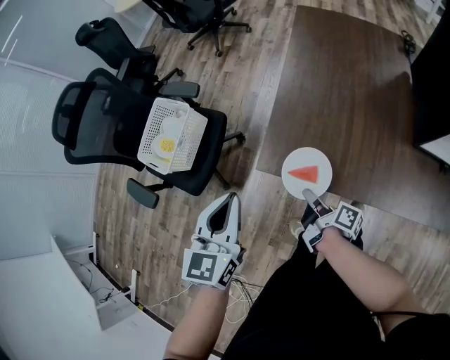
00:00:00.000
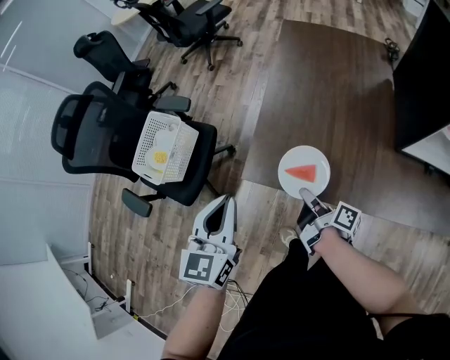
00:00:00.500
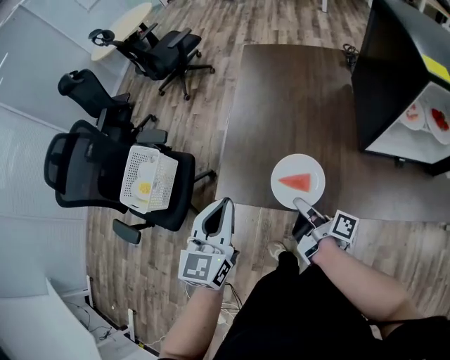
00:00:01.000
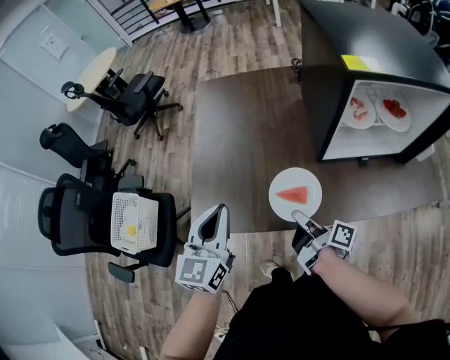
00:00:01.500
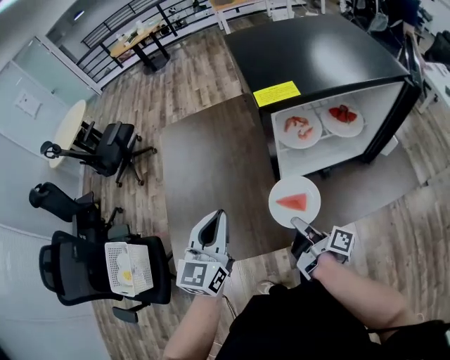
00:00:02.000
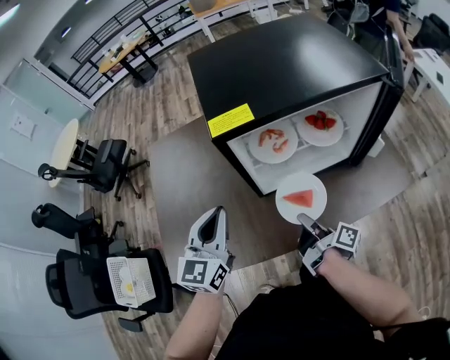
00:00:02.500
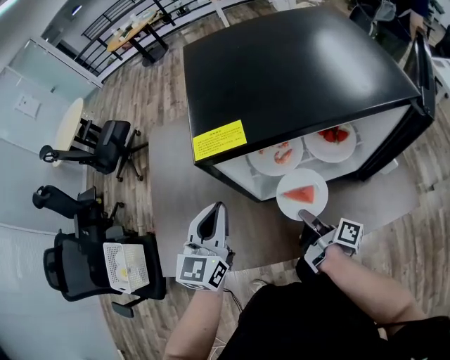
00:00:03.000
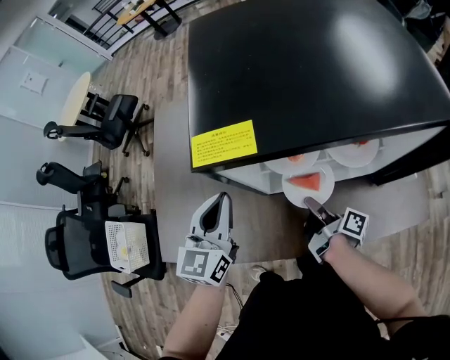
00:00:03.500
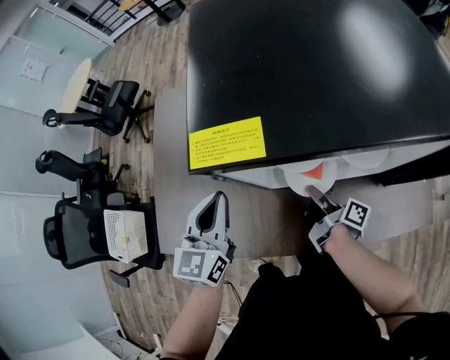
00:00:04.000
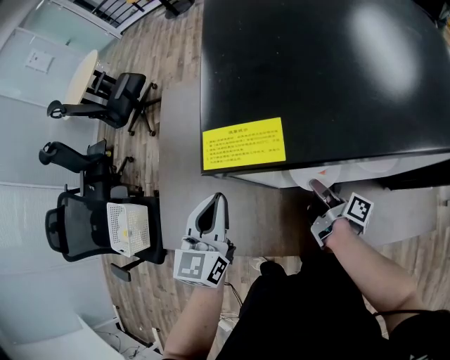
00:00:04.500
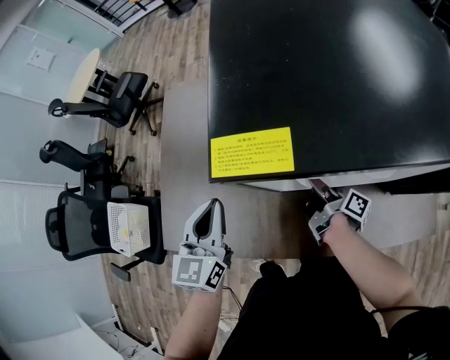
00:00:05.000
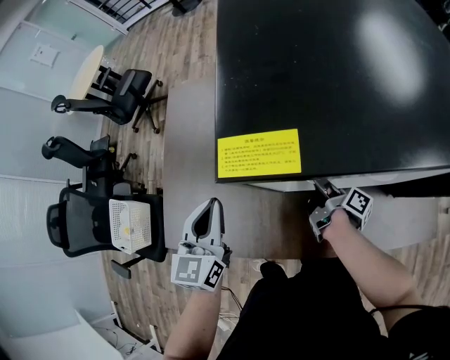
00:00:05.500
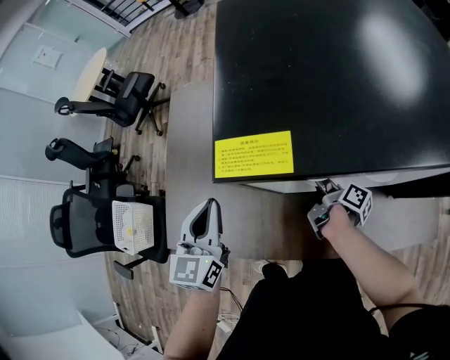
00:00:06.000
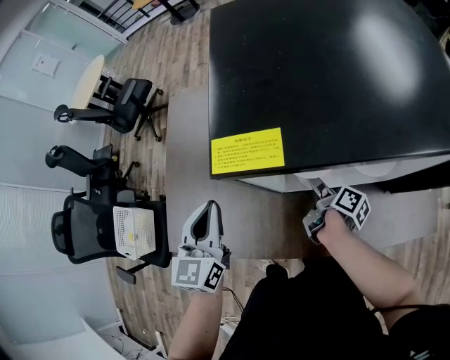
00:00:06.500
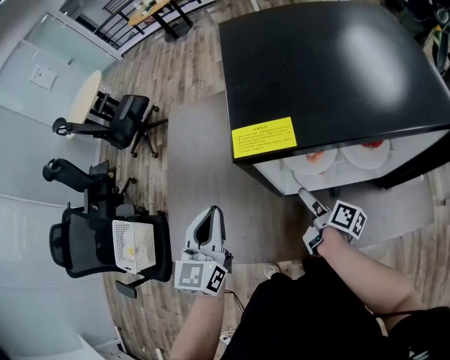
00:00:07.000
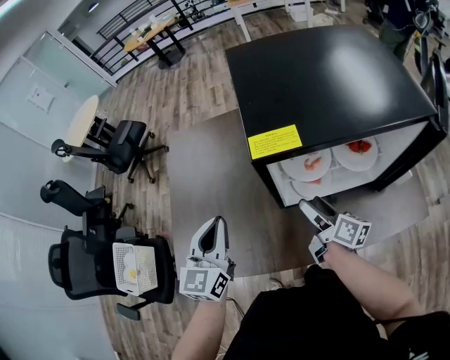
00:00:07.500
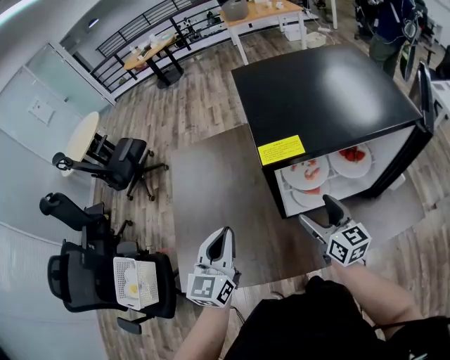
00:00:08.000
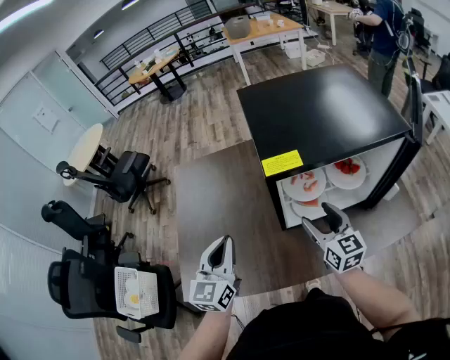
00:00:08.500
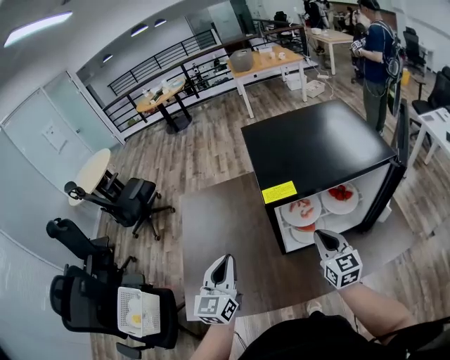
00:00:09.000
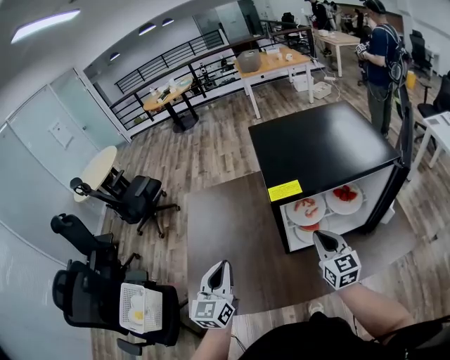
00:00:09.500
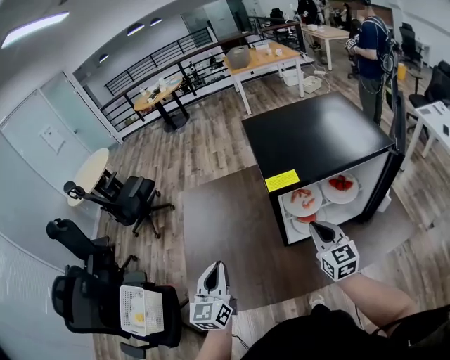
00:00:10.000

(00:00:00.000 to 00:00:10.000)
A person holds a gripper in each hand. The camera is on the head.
00:00:00.000 - 00:00:02.000: The left gripper ends up about 40 cm from where it was, and swivels approximately 30 degrees.
00:00:02.000 - 00:00:04.000: The left gripper ends up some 15 cm from where it was.
00:00:04.000 - 00:00:06.000: The left gripper moves about 5 cm.
00:00:06.000 - 00:00:08.000: The left gripper shifts by approximately 5 cm.
00:00:08.000 - 00:00:10.000: The left gripper ends up some 10 cm from where it was.

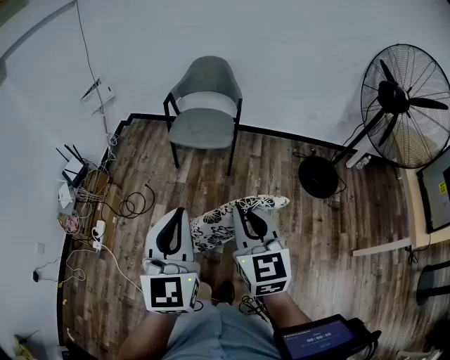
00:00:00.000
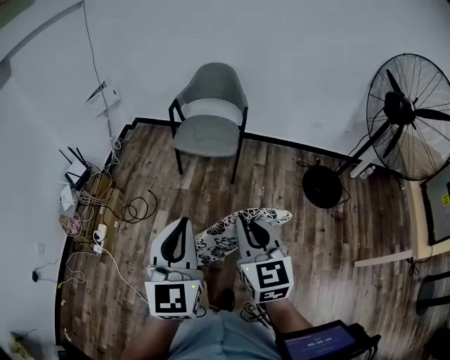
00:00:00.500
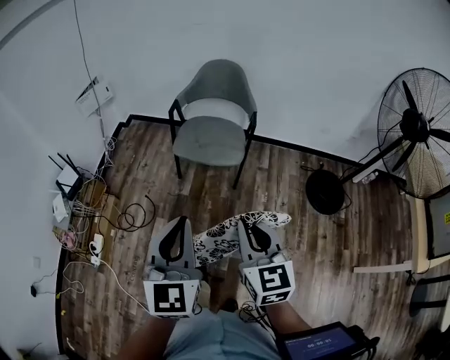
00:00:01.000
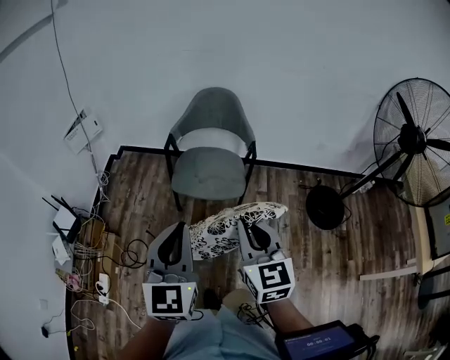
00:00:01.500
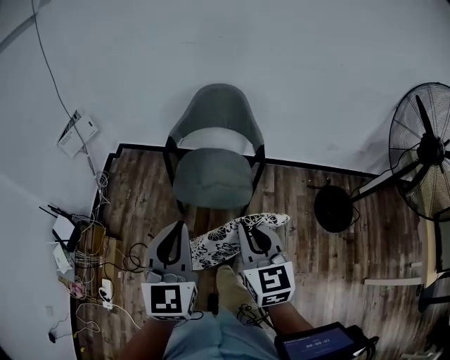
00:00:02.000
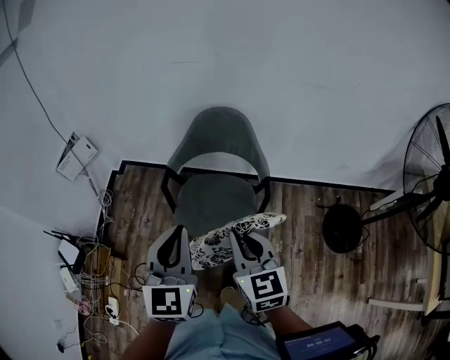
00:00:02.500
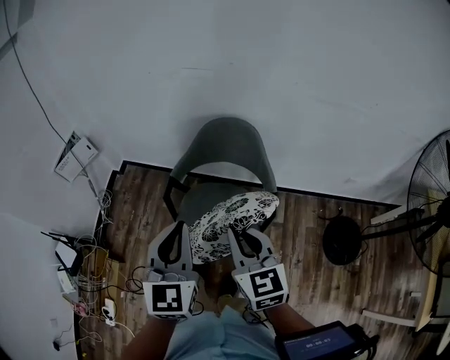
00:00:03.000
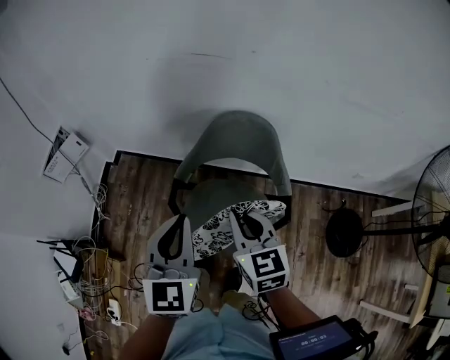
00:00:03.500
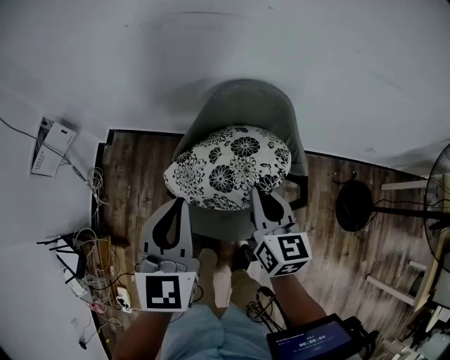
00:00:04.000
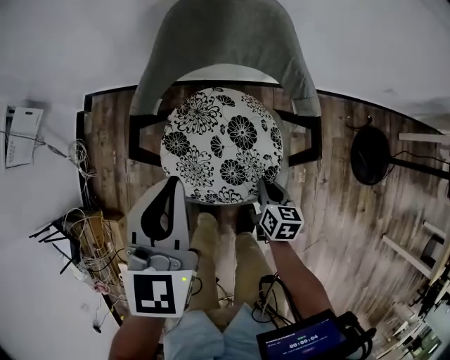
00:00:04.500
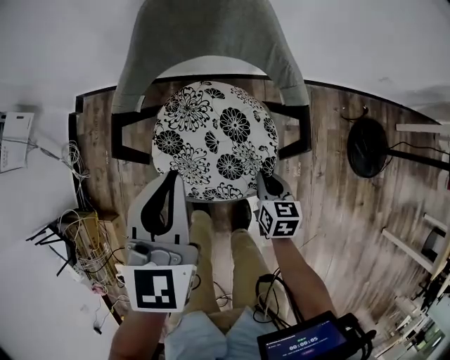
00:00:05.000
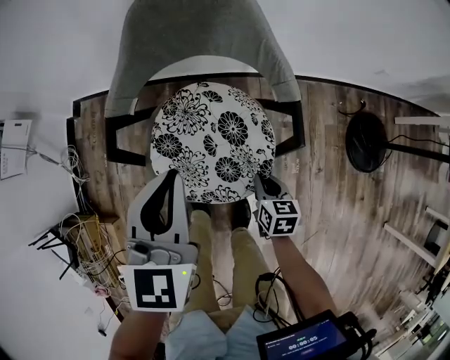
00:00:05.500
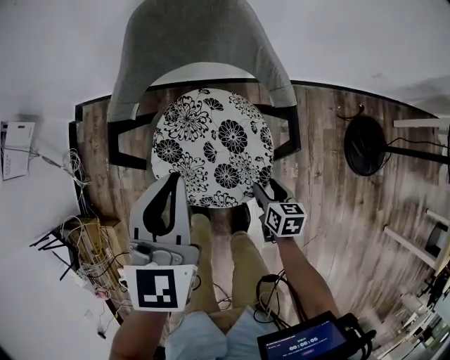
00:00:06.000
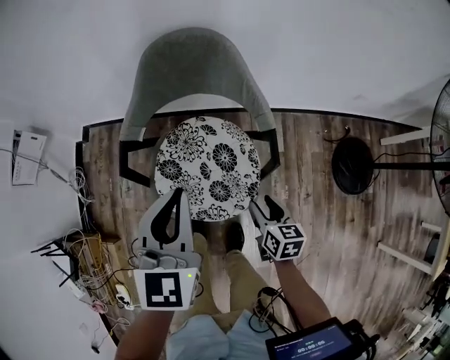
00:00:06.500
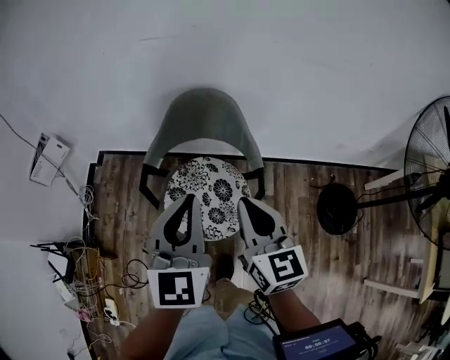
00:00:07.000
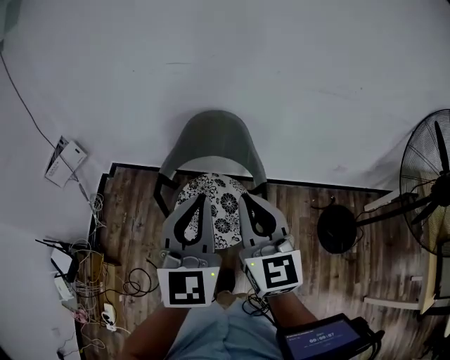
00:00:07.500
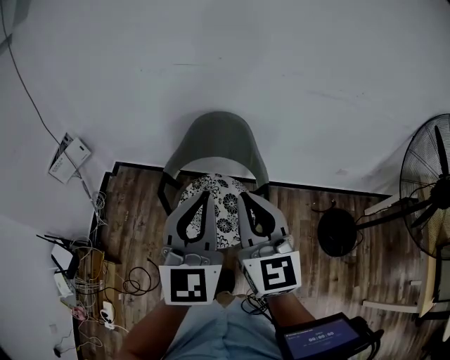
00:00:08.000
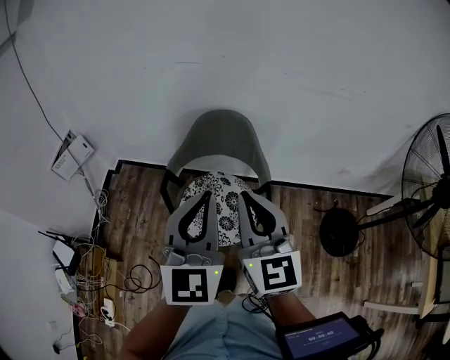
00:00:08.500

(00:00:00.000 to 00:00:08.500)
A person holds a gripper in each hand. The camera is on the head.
00:00:00.000 - 00:00:02.000: Both grippers travel together forward, approximately 40 cm.
00:00:02.000 - 00:00:04.000: Both grippers are carried forward, about 40 cm. The right gripper rotates roughly 20 degrees.
00:00:04.000 - 00:00:06.500: The left gripper heads to the right, downward and backward, covering roughly 15 cm, while the right gripper heads downward, backward and to the right, covering approximately 35 cm, turns by about 20 degrees, and opens up.
00:00:06.500 - 00:00:08.500: The right gripper is displaced upward by about 50 cm, tips its fingers upward by some 40 degrees, and closes up, while the left gripper travels upward and backward by some 25 cm, and changes its angle by roughly 20 degrees.

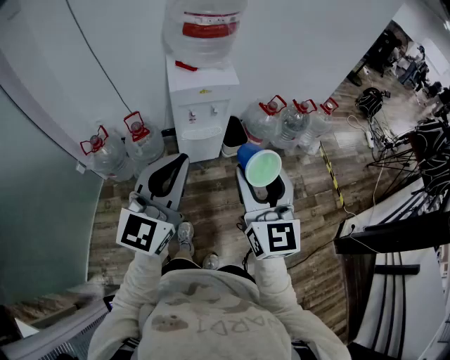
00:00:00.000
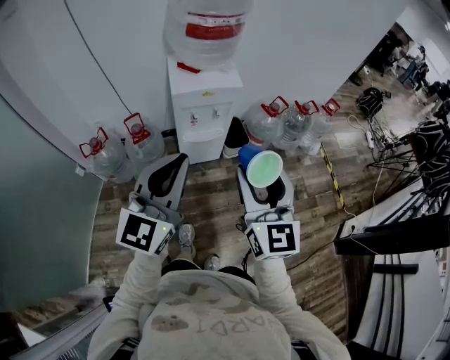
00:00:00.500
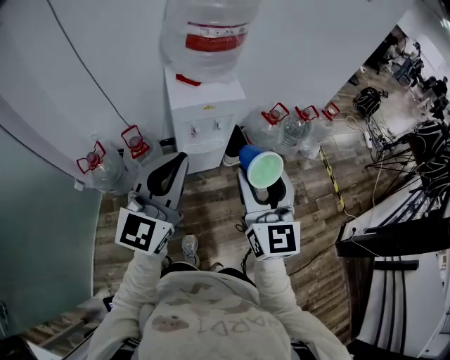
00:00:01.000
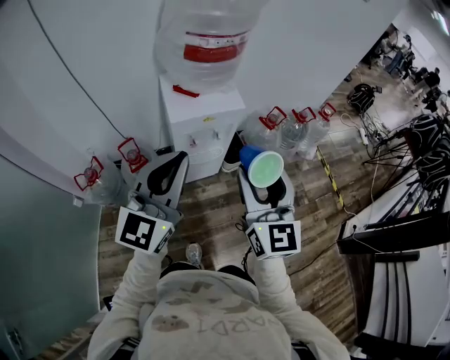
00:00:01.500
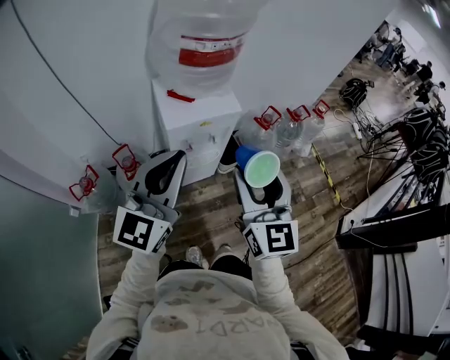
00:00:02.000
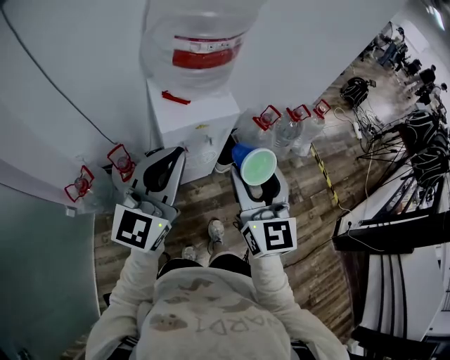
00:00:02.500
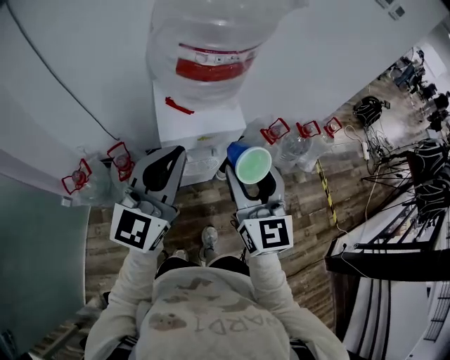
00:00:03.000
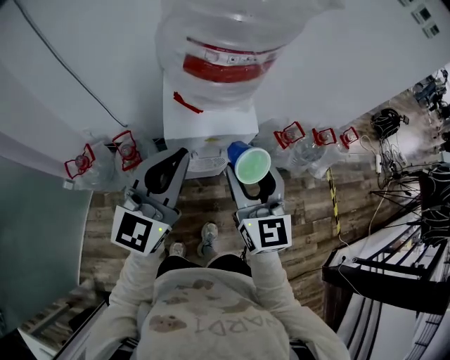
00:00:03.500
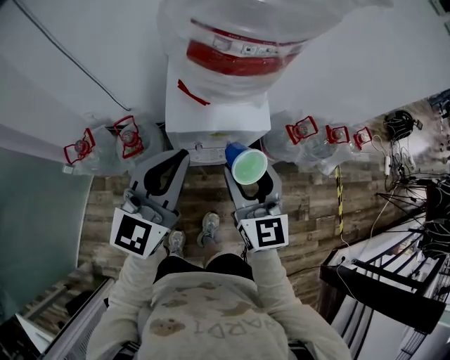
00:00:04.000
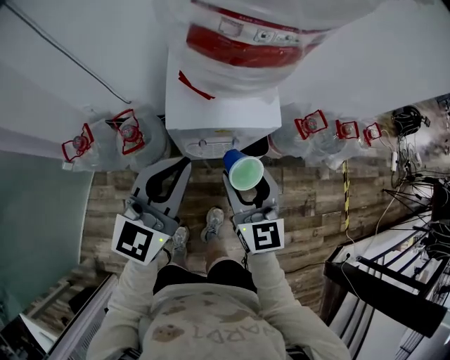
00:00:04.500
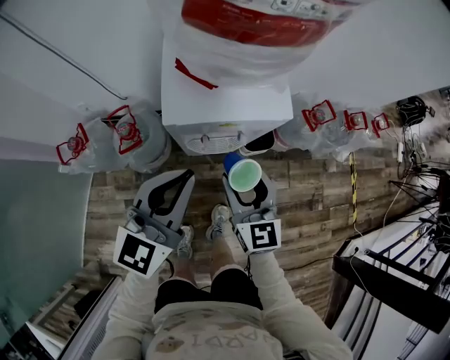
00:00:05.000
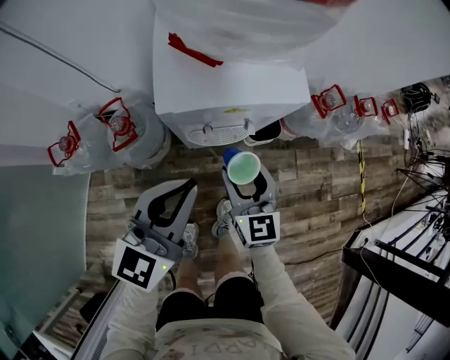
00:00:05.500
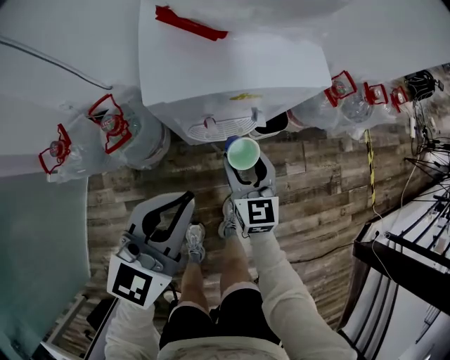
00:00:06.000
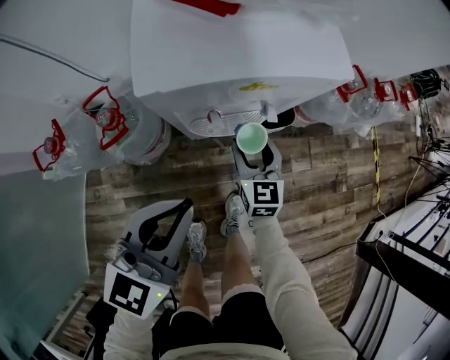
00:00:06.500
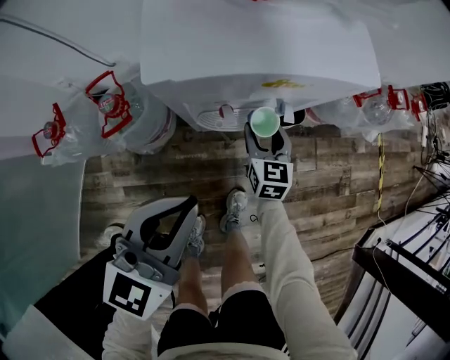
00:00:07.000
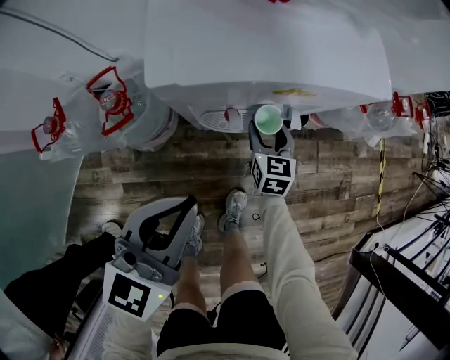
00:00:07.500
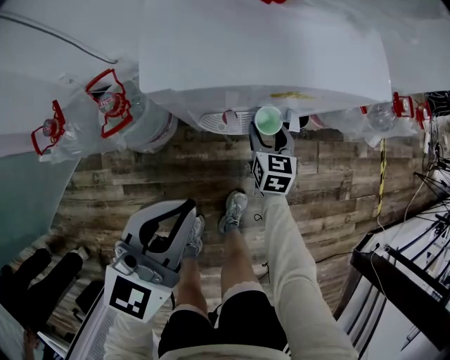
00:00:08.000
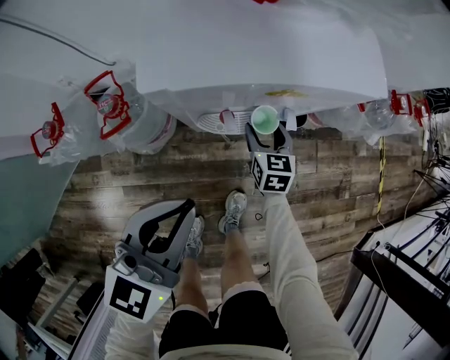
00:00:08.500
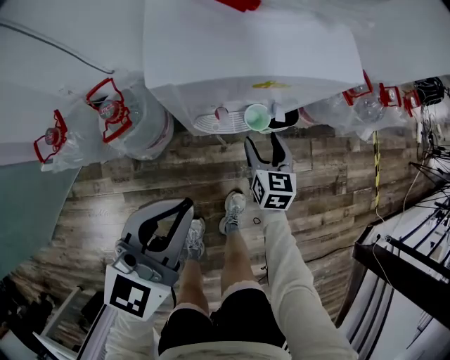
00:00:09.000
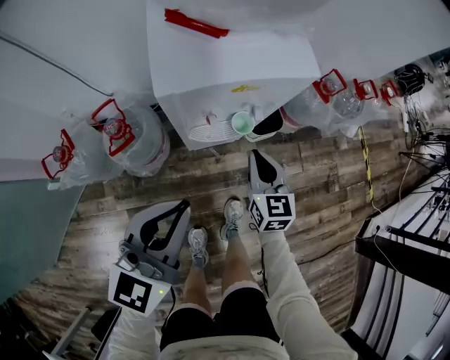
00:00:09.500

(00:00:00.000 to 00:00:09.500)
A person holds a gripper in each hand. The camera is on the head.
00:00:00.000 - 00:00:02.000: Both grippers travel together forward and to the left, about 20 cm.
00:00:02.000 - 00:00:04.000: The grippers both shift forward and downward by some 20 cm. The right gripper rotates approximately 20 degrees.
00:00:04.000 - 00:00:05.500: The grippers both shift downward by some 20 cm.
00:00:05.500 - 00:00:07.500: The right gripper goes some 25 cm downward and forward. The left gripper shifts some 10 cm downward.
00:00:07.500 - 00:00:09.500: The right gripper moves upward and backward, approximately 20 cm, and closes its fingers; the left gripper goes some 10 cm upward.
